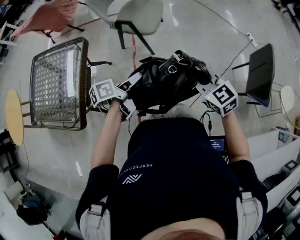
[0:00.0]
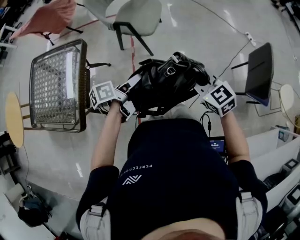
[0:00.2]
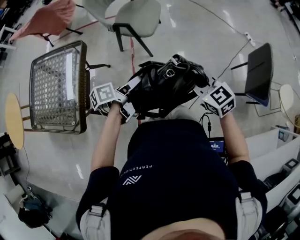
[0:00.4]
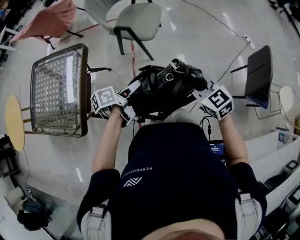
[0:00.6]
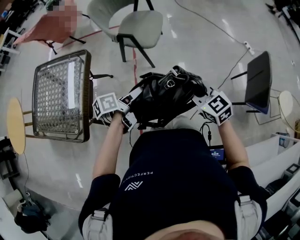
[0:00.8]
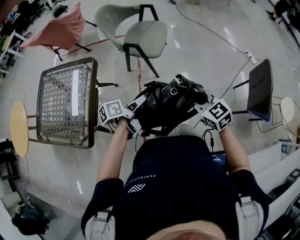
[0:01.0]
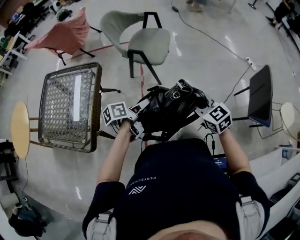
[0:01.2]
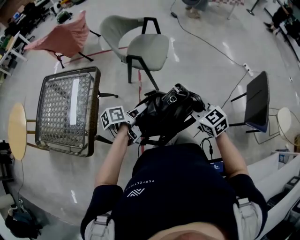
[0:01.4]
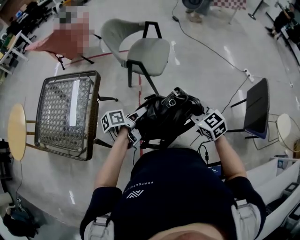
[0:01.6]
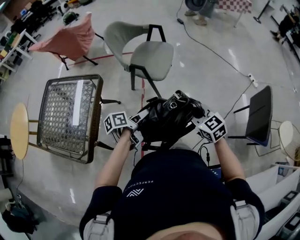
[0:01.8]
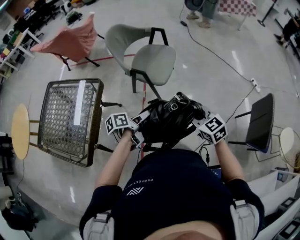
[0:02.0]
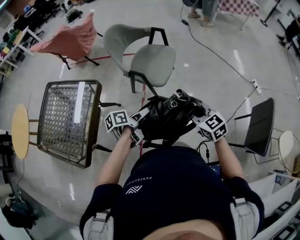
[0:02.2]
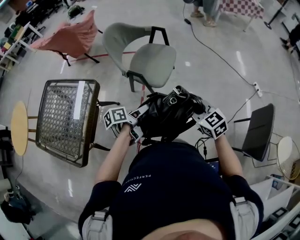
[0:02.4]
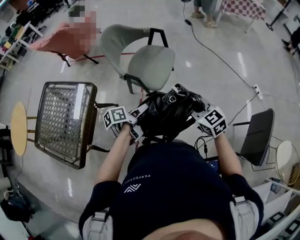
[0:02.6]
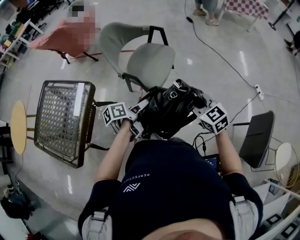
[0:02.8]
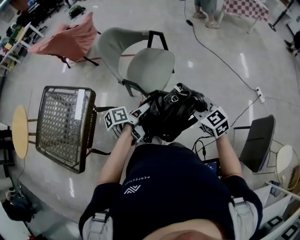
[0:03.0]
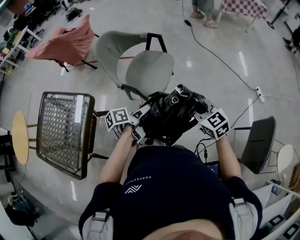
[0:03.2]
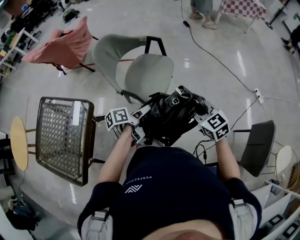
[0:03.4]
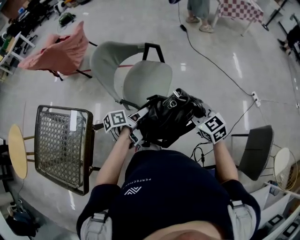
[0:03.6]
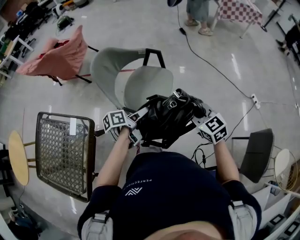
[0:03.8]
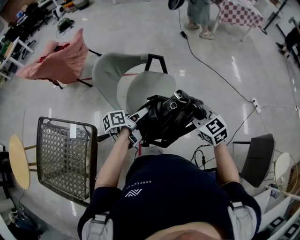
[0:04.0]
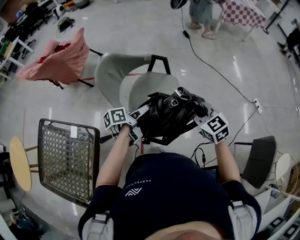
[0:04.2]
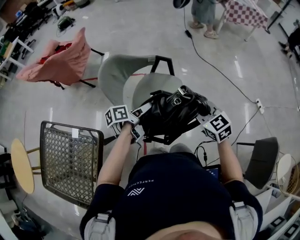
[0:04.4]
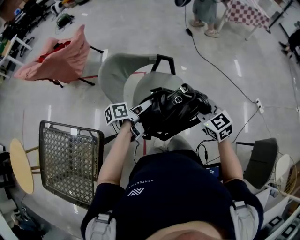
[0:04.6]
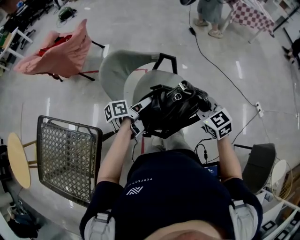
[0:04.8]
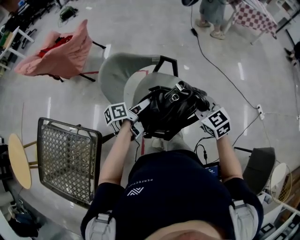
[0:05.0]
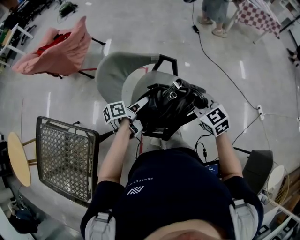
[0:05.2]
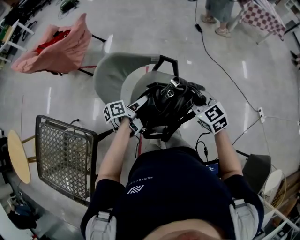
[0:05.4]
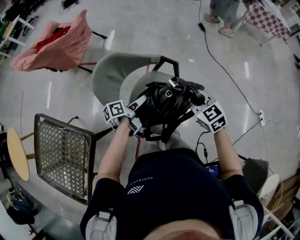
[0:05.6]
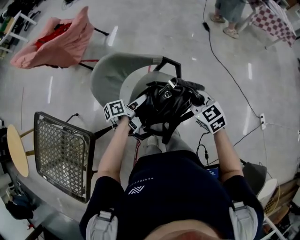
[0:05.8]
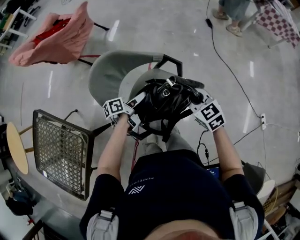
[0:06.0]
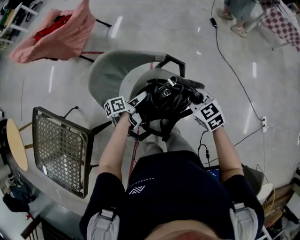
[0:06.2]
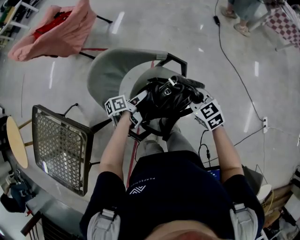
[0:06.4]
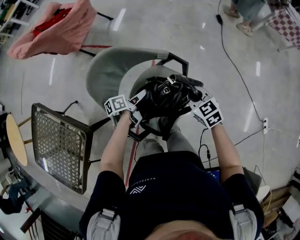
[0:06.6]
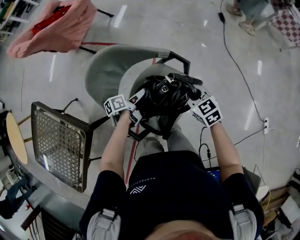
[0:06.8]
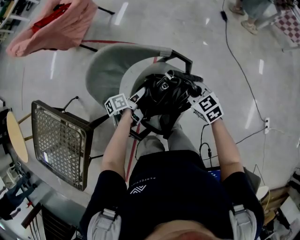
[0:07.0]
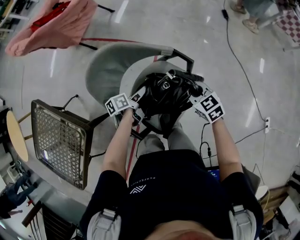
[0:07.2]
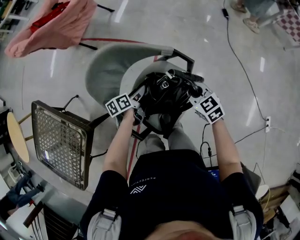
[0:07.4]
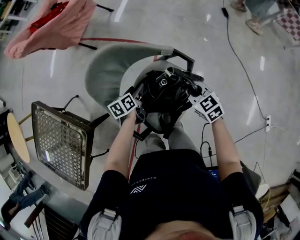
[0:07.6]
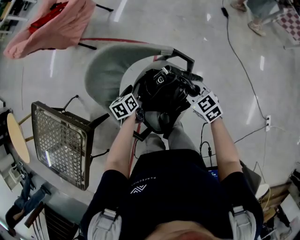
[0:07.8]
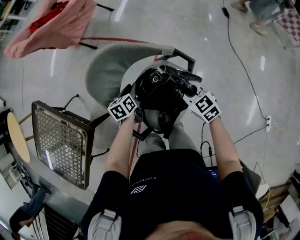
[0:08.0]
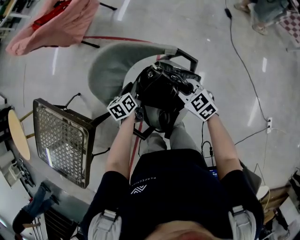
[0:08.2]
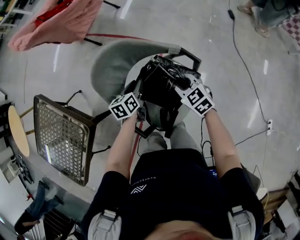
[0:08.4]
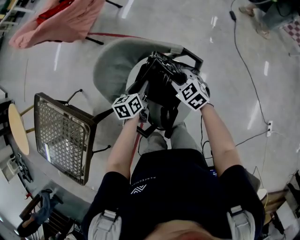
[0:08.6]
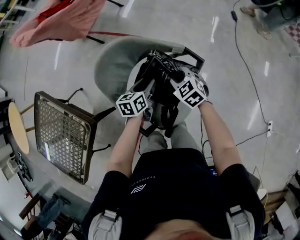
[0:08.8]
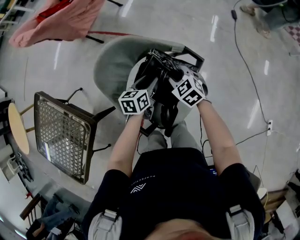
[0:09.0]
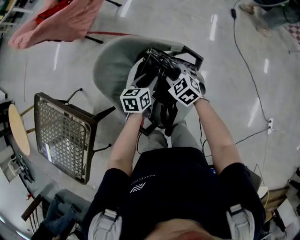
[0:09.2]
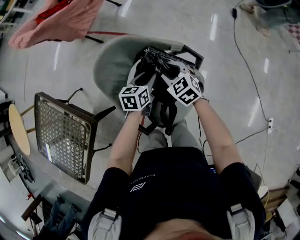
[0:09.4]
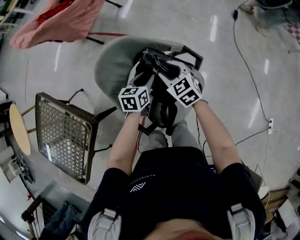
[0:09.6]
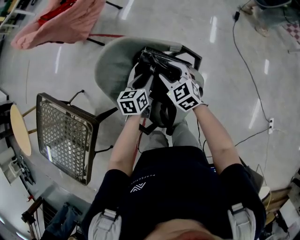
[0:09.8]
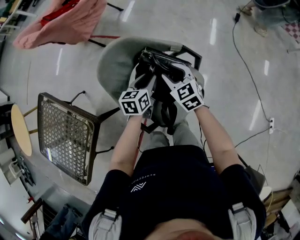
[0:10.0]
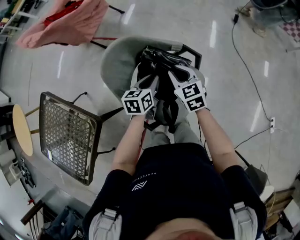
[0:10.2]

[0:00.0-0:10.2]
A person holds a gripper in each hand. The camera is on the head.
0.0 to 1.4 s: The grippers stay close to where they were, moving slightly.
1.4 to 3.0 s: The left gripper shifts approximately 25 cm forward and to the right, while the right gripper heads forward, covering about 25 cm.
3.0 to 4.4 s: The left gripper is displaced forward by some 25 cm, while the right gripper is displaced forward and to the left by some 25 cm.
4.4 to 5.8 s: The left gripper heads forward and downward, covering roughly 20 cm; the right gripper moves forward, some 20 cm.
5.8 to 7.2 s: The right gripper shifts some 15 cm downward and forward; the left gripper goes approximately 10 cm downward.
7.2 to 8.8 s: The right gripper shifts about 10 cm to the left and forward. The left gripper travels upward by about 5 cm, changes its angle by roughly 30 degrees, and closes up.
8.8 to 10.2 s: The two grippers go approximately 5 cm upward. The right gripper swivels some 20 degrees, and opens, then closes again.

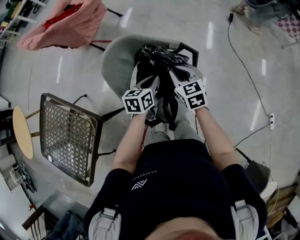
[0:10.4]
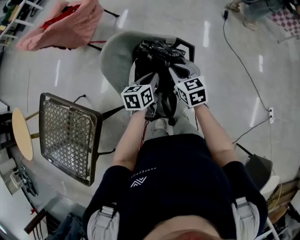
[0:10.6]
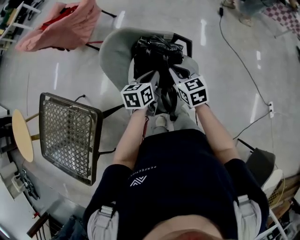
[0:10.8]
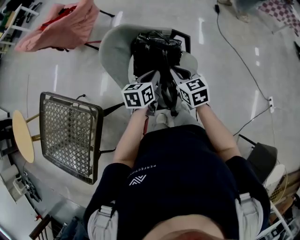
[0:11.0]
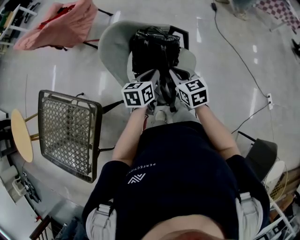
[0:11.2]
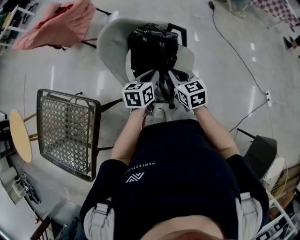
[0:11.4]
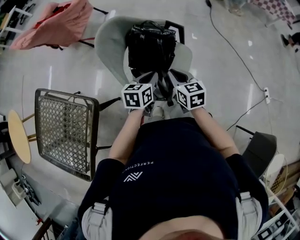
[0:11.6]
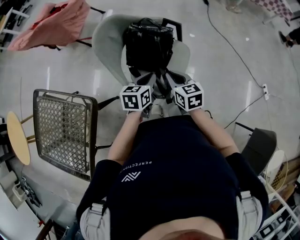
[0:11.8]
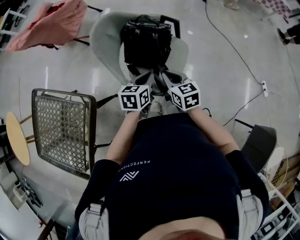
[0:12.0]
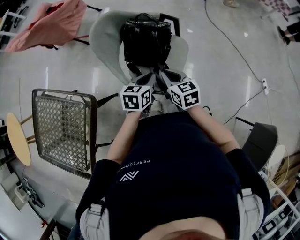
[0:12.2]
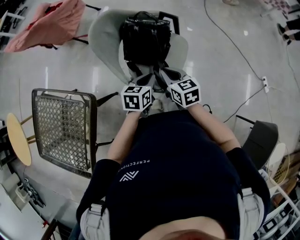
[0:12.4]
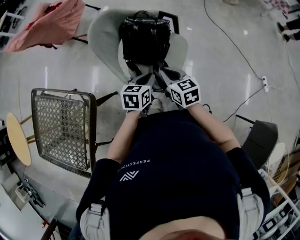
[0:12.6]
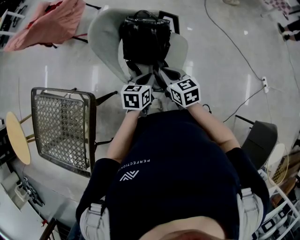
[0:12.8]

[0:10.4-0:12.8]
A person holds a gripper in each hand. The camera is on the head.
10.4 to 11.6 s: The two grippers go roughly 15 cm backward.
11.6 to 12.8 s: The left gripper travels backward by roughly 5 cm.

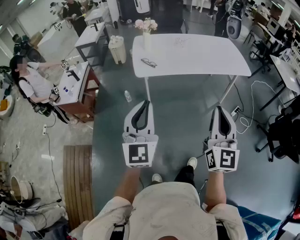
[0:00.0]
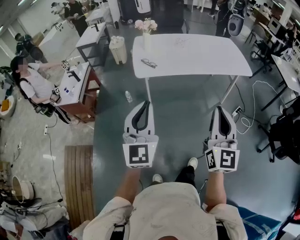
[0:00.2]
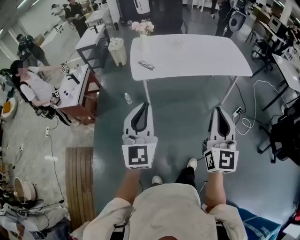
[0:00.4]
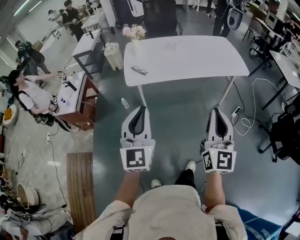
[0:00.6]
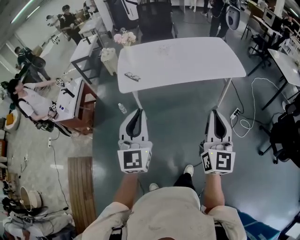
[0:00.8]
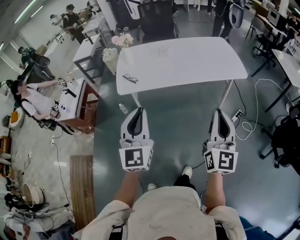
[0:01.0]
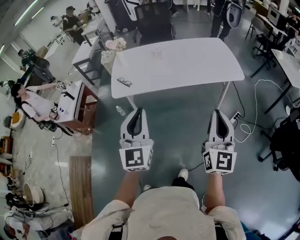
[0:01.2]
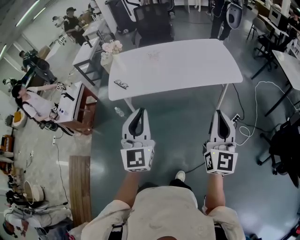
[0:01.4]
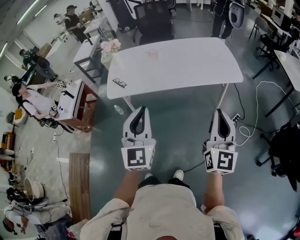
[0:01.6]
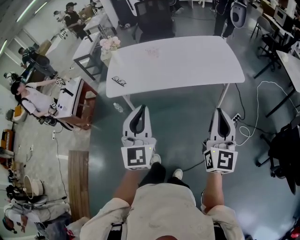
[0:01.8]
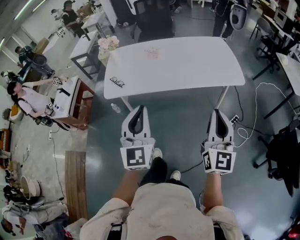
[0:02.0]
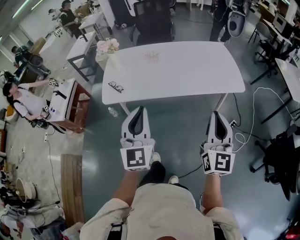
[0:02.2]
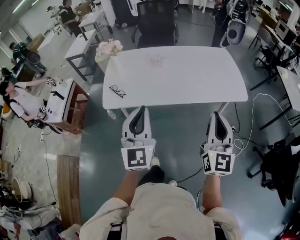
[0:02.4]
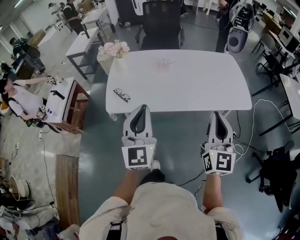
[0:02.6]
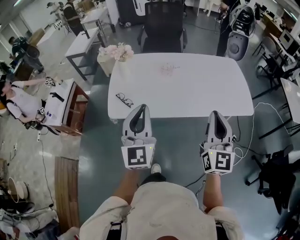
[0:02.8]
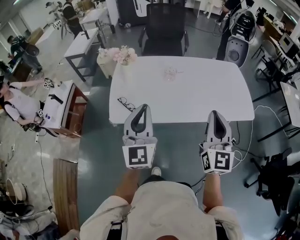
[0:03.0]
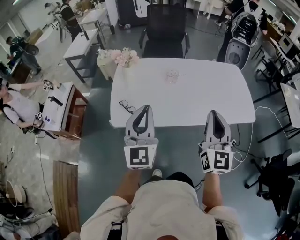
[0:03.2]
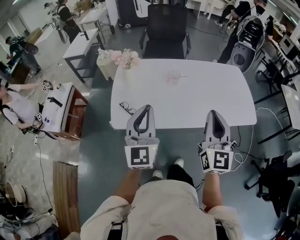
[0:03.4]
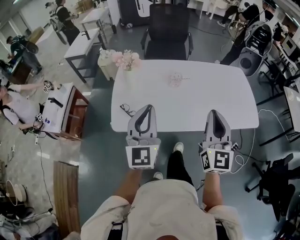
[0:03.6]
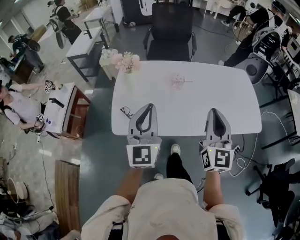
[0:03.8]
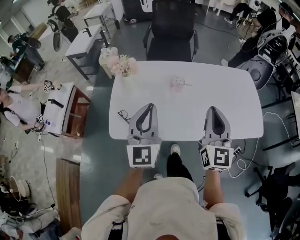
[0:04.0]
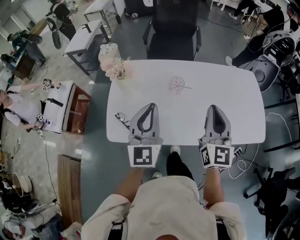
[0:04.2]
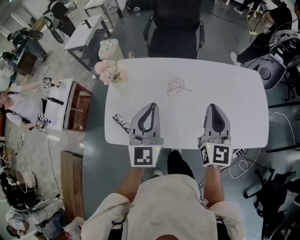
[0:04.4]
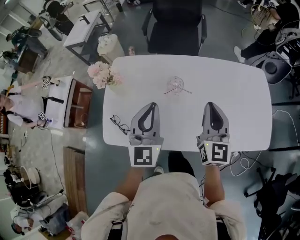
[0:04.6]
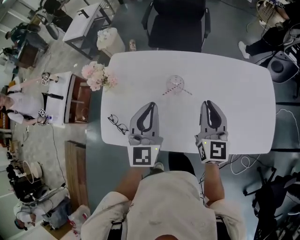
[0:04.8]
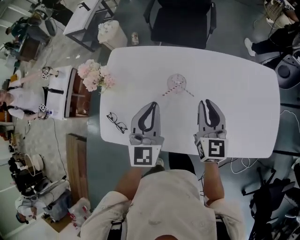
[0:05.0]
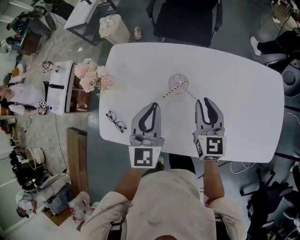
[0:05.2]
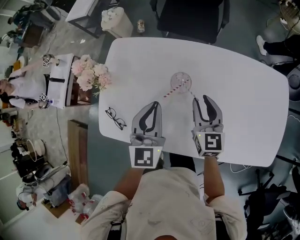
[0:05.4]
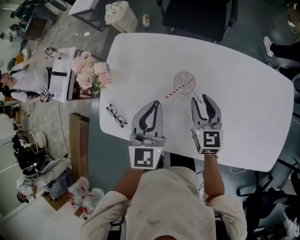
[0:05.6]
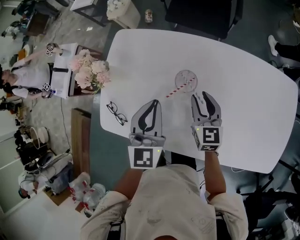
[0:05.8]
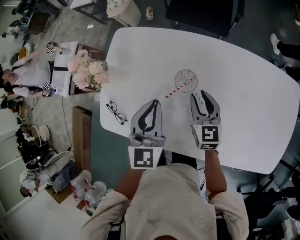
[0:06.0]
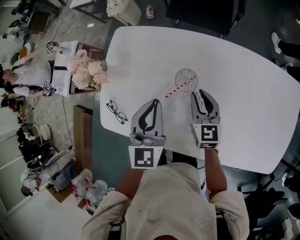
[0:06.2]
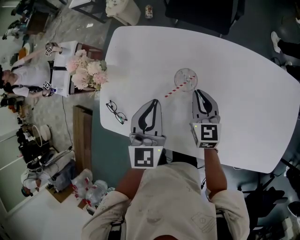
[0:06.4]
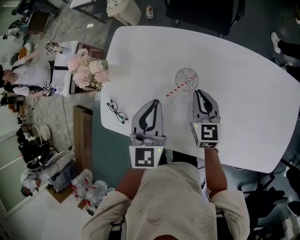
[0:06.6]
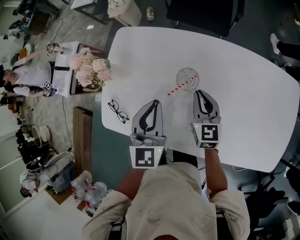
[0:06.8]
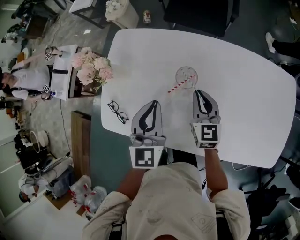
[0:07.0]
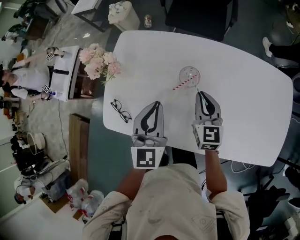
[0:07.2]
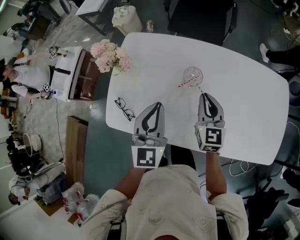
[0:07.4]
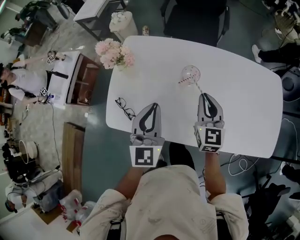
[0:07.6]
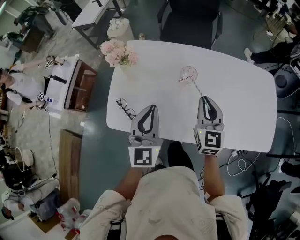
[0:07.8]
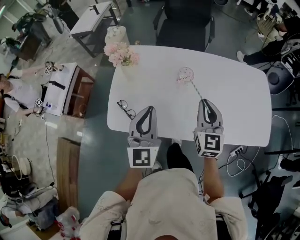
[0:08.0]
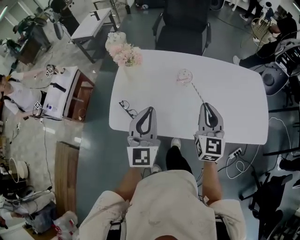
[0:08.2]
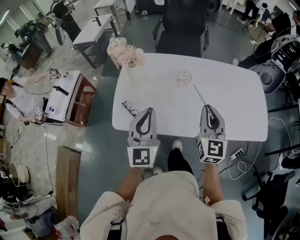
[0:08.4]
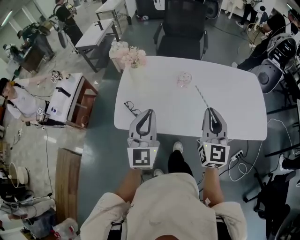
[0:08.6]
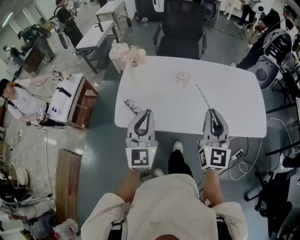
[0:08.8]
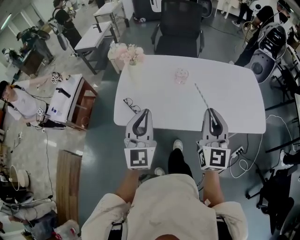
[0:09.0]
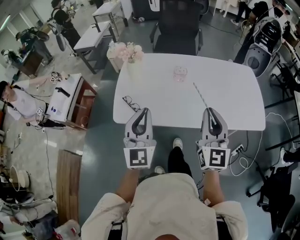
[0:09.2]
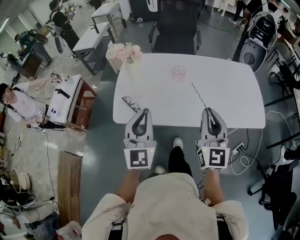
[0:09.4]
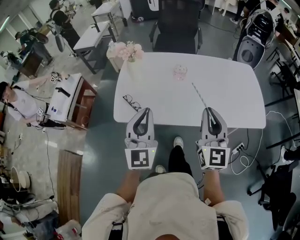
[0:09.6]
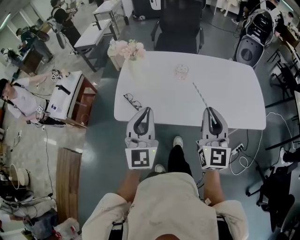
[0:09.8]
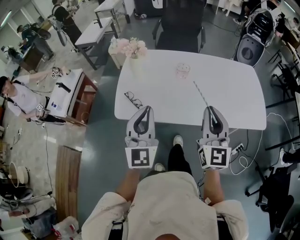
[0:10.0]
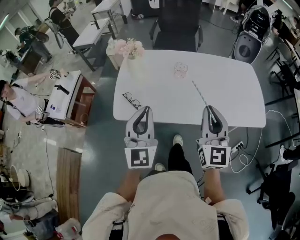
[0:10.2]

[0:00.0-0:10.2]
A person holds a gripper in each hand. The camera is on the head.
0.0 to 1.4 s: The grippers both shift to the right and forward by some 35 cm.
1.4 to 3.0 s: The two grippers go some 35 cm forward and to the left.
3.0 to 4.4 s: Both grippers move forward, approximately 25 cm.
4.4 to 5.8 s: The right gripper moves downward and forward, some 30 cm, changes its angle by approximately 30 degrees, and opens; the left gripper is displaced downward and forward by about 20 cm.
5.8 to 7.2 s: The left gripper moves approximately 5 cm; the right gripper closes its fingers.
7.2 to 8.8 s: The right gripper goes roughly 35 cm backward and upward, and rotates some 30 degrees. The left gripper goes approximately 30 cm backward, to the left and upward.
8.8 to 10.2 s: The grippers make only small movements.

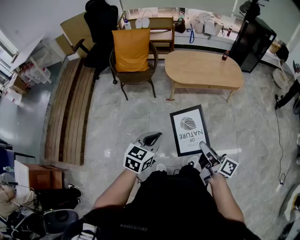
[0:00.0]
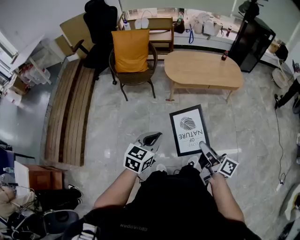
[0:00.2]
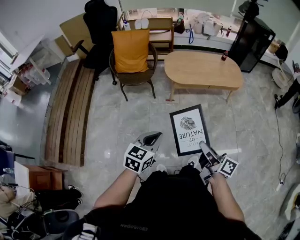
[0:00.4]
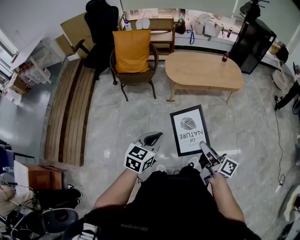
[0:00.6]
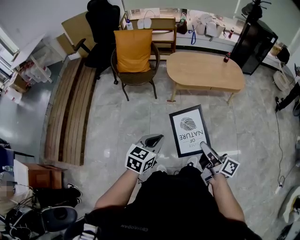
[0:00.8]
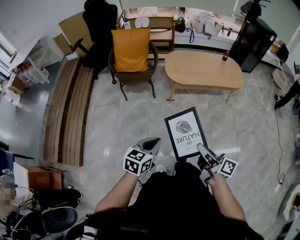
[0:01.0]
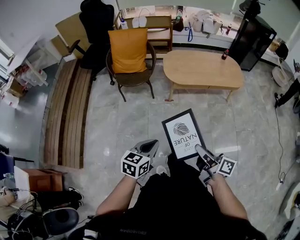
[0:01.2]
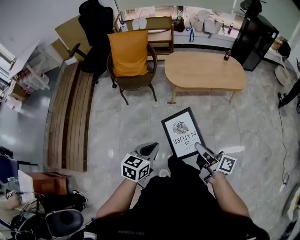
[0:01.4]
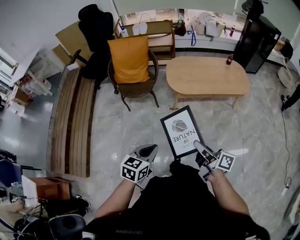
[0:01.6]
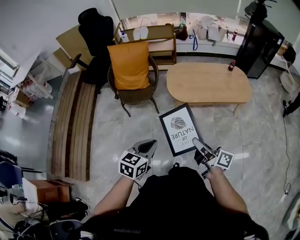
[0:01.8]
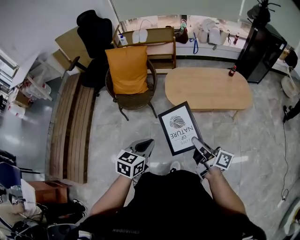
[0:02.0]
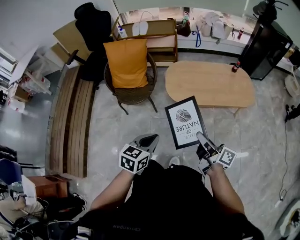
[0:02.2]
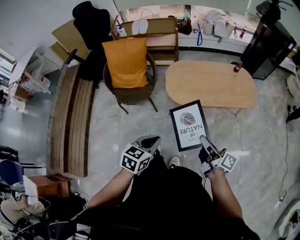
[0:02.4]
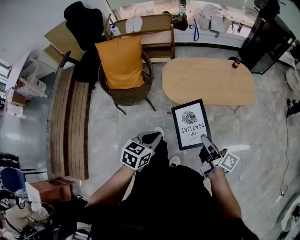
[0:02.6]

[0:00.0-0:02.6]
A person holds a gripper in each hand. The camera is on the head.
0.0 to 1.2 s: The grippers make only small movements.
1.2 to 2.6 s: Both grippers travel together forward, about 35 cm.
